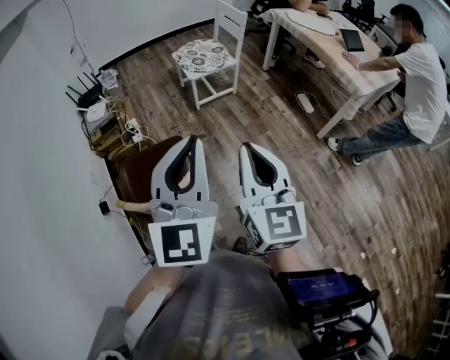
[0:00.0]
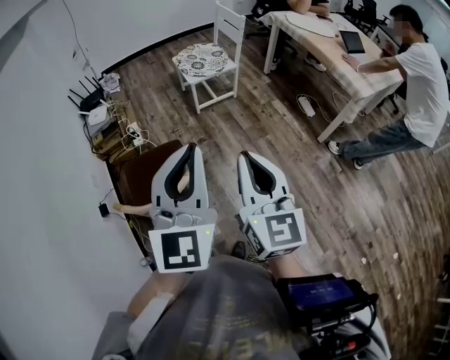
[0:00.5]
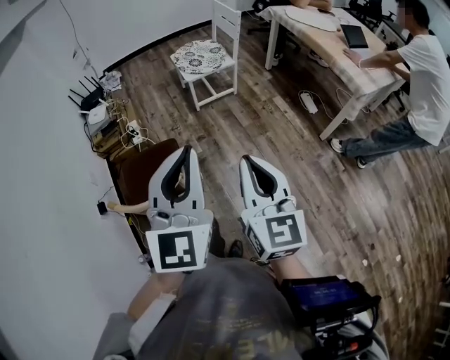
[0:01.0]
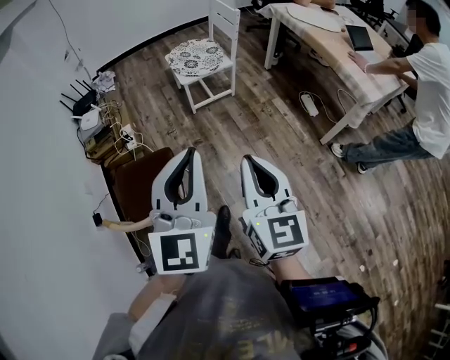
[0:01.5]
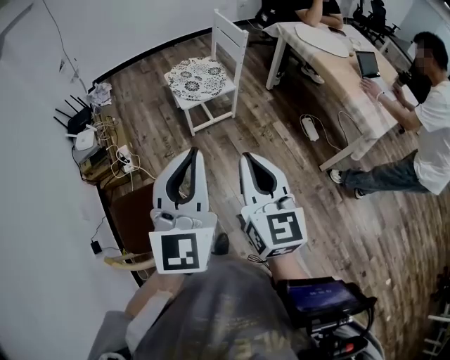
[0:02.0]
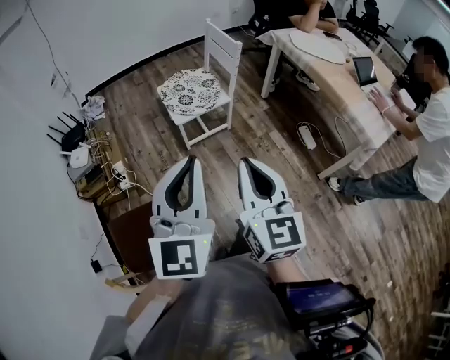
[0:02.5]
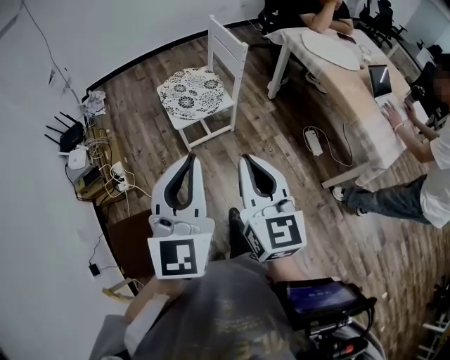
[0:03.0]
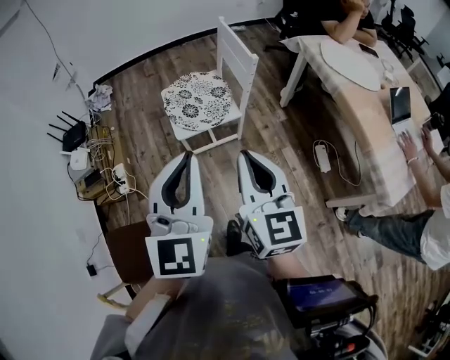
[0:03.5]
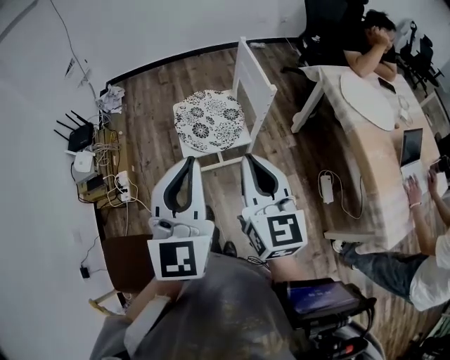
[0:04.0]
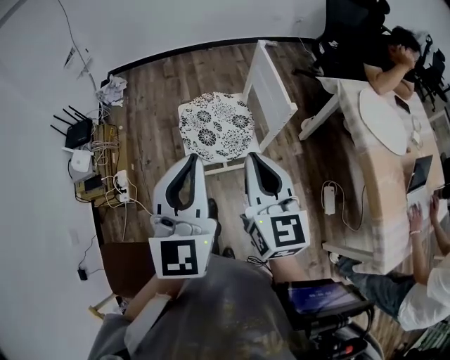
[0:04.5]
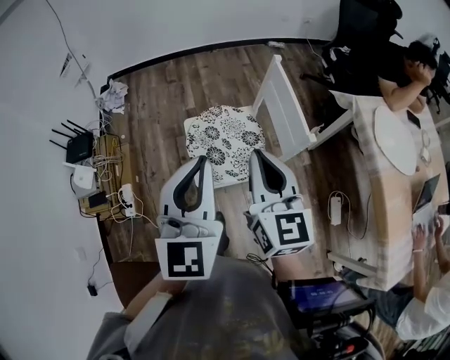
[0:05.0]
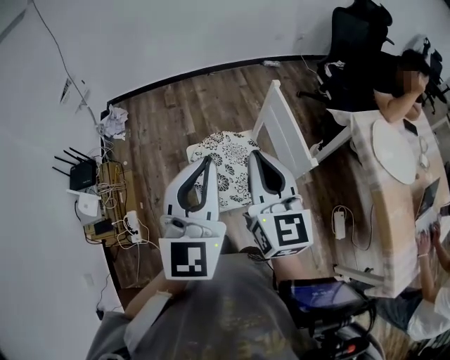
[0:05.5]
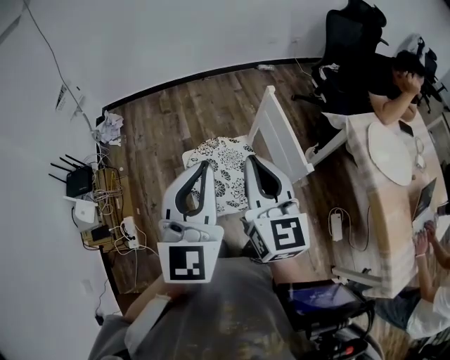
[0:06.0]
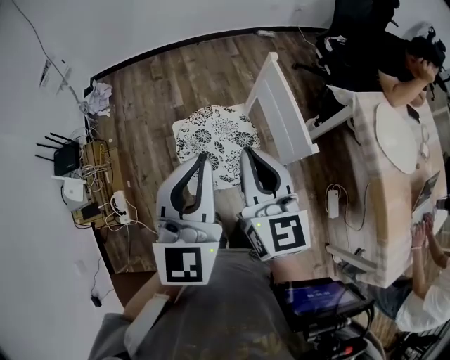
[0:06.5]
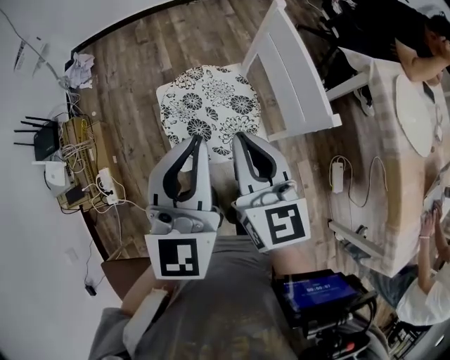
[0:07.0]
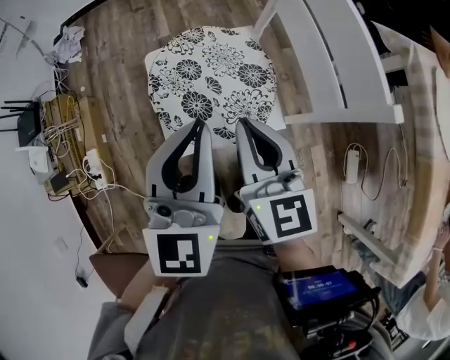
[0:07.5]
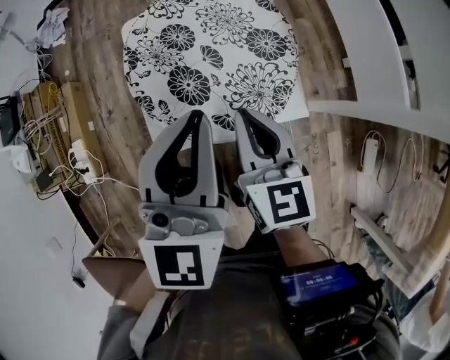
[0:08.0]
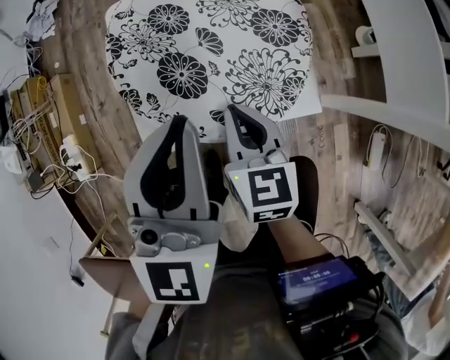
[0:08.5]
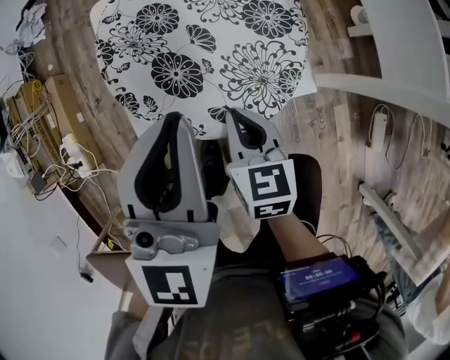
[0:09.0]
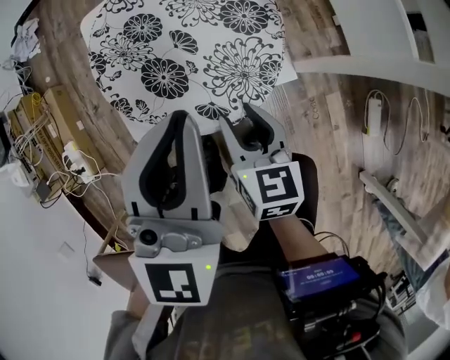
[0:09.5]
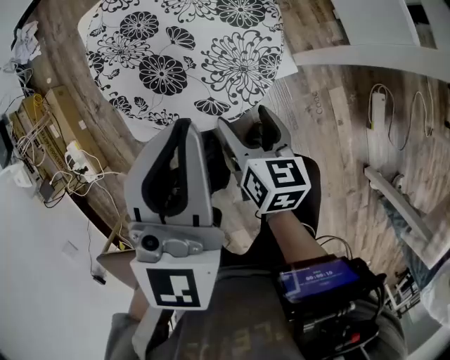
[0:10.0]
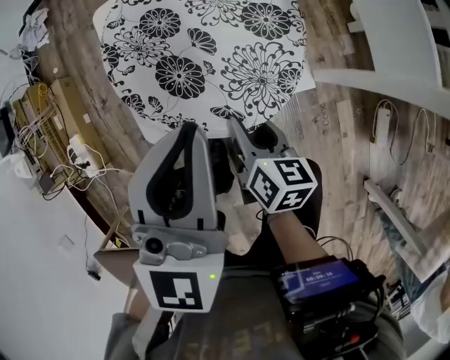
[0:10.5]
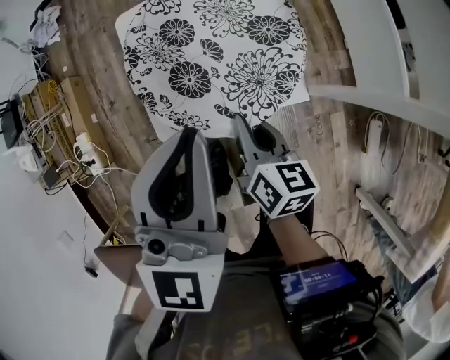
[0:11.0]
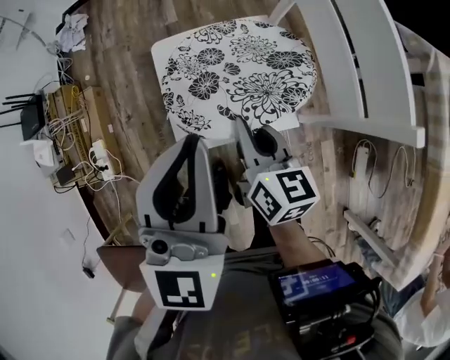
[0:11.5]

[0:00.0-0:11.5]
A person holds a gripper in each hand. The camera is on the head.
0:00.0 to 0:02.0: Both grippers move forward, about 25 cm.
0:02.0 to 0:04.0: Both grippers travel together forward, some 35 cm.
0:04.0 to 0:06.0: The two grippers go some 30 cm forward.
0:06.0 to 0:07.5: Both grippers travel together downward, some 30 cm.
0:07.5 to 0:09.5: The right gripper shifts roughly 25 cm downward, swivels roughly 30 degrees, and opens up; the left gripper is displaced downward by roughly 10 cm.
0:09.5 to 0:11.5: The two grippers go some 15 cm upward. The right gripper closes.

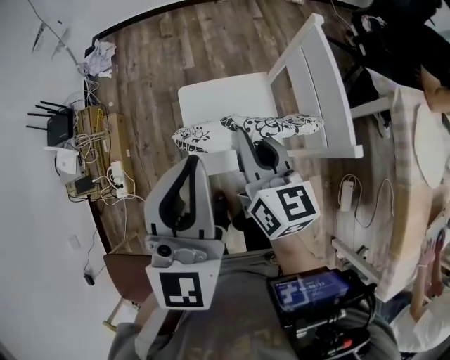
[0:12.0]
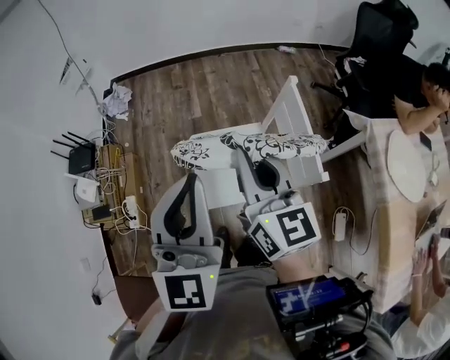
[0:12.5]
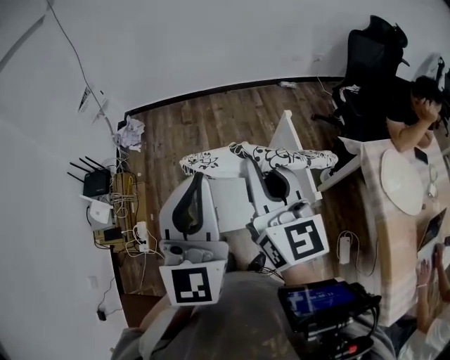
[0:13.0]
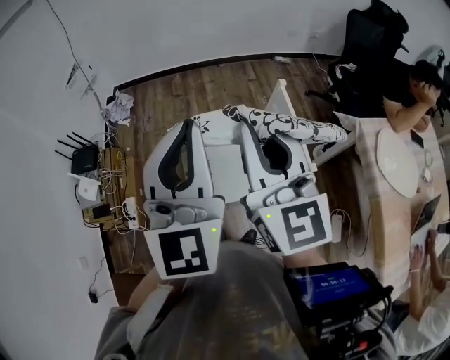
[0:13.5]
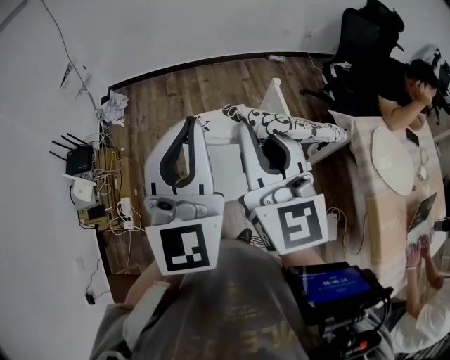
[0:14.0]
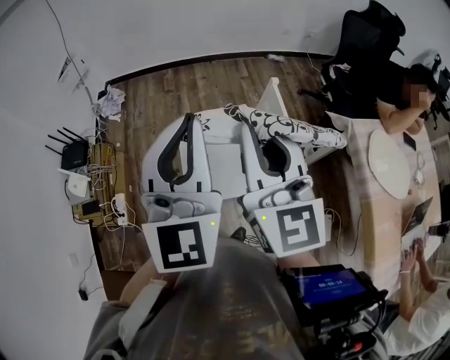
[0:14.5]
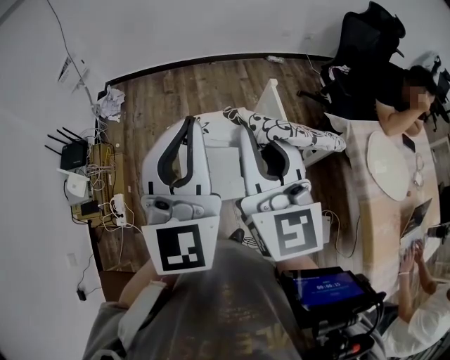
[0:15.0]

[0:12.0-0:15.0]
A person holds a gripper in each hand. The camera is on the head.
0:12.0 to 0:13.5: Both grippers travel together upward, approximately 25 cm. The right gripper turns by roughly 30 degrees.
0:13.5 to 0:15.0: The grippers move only a little.

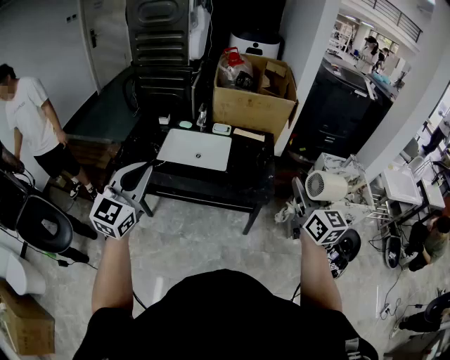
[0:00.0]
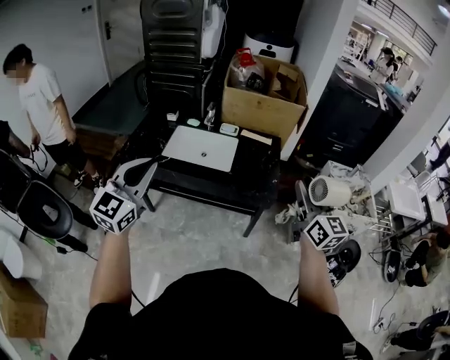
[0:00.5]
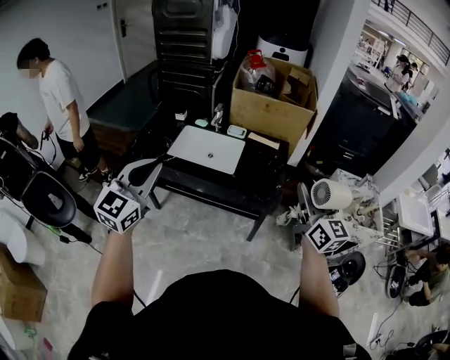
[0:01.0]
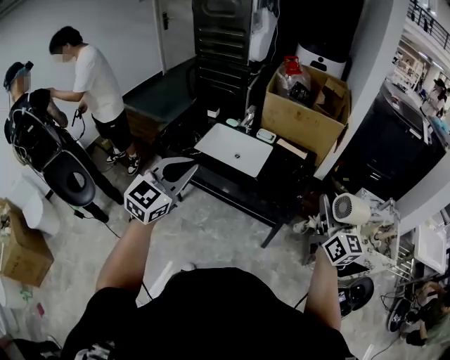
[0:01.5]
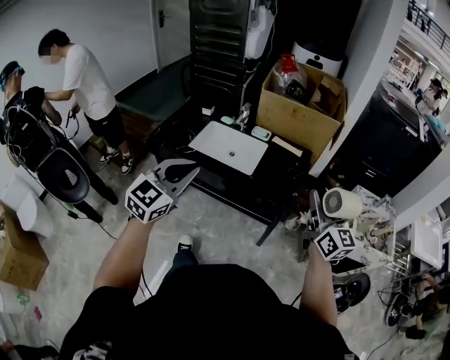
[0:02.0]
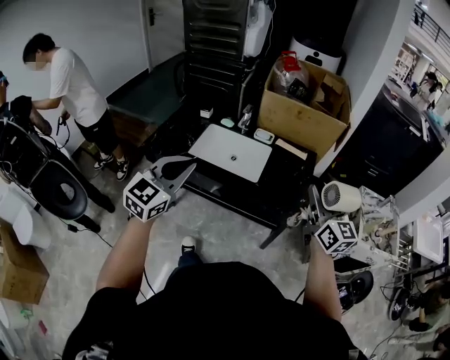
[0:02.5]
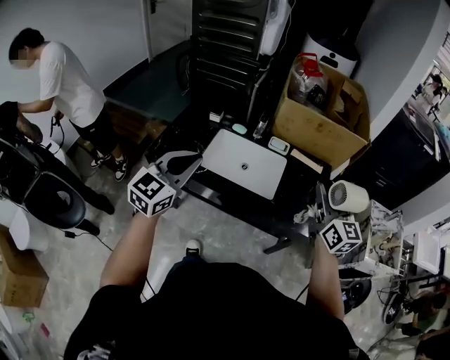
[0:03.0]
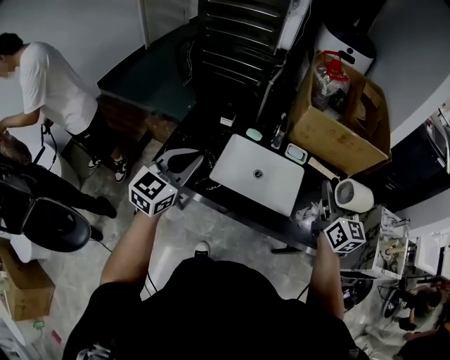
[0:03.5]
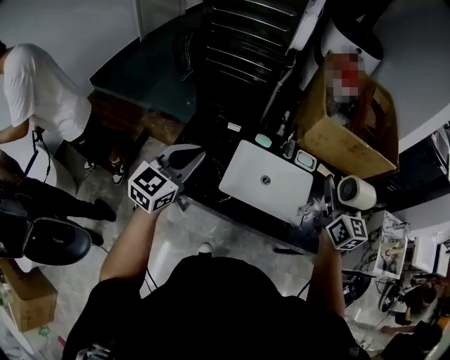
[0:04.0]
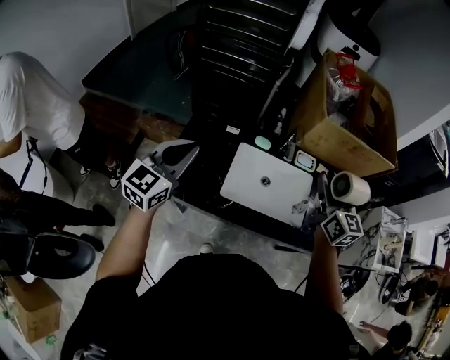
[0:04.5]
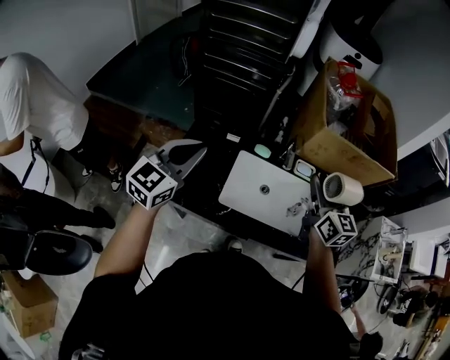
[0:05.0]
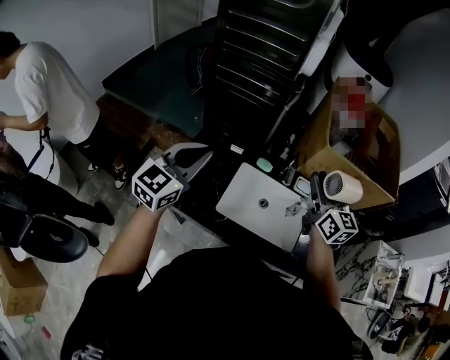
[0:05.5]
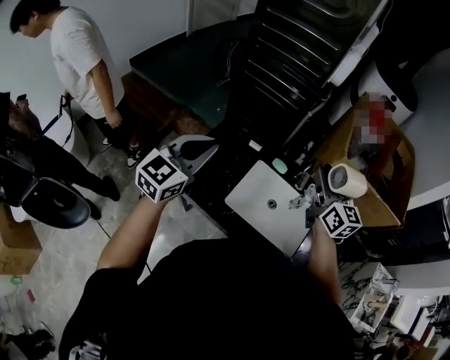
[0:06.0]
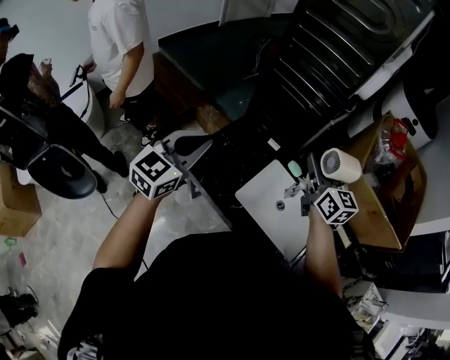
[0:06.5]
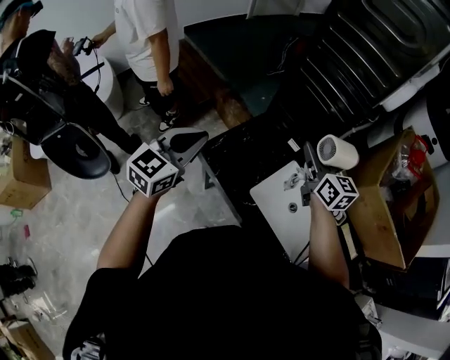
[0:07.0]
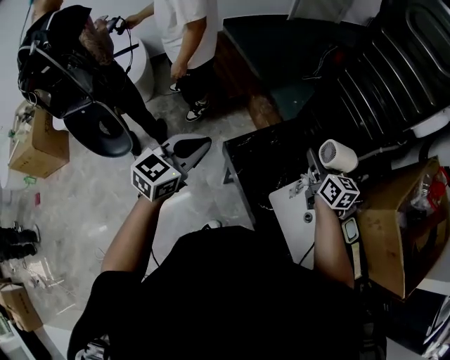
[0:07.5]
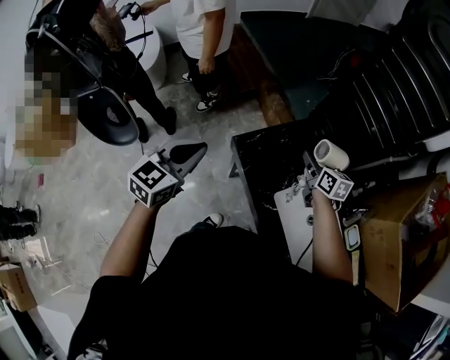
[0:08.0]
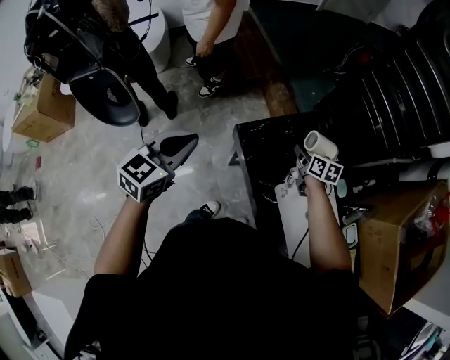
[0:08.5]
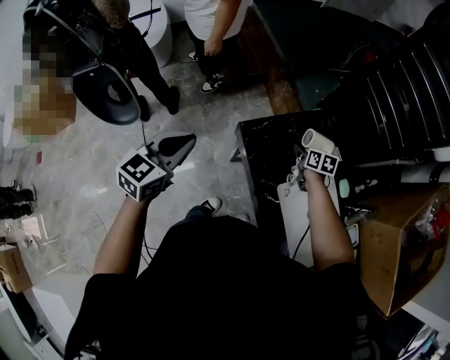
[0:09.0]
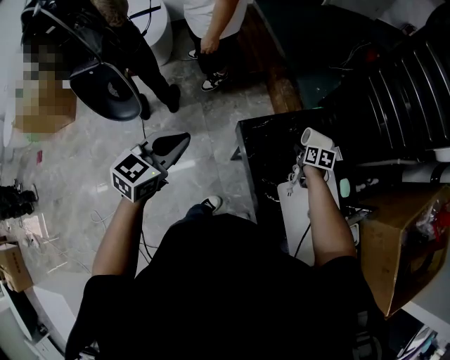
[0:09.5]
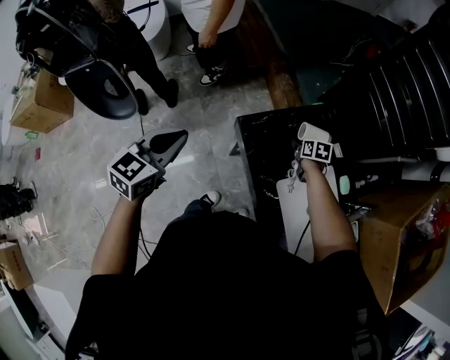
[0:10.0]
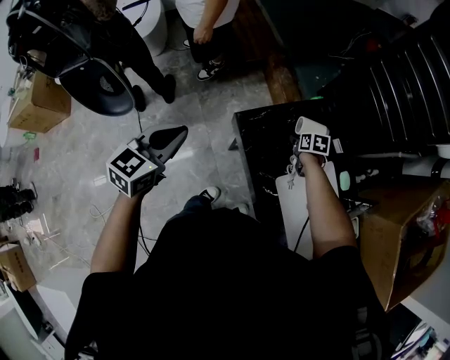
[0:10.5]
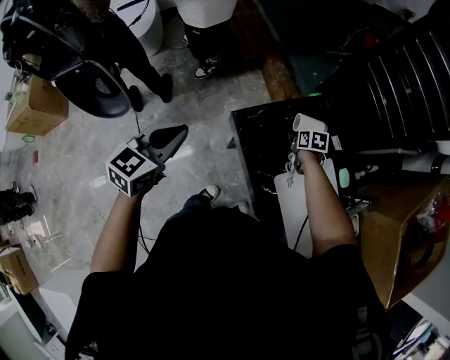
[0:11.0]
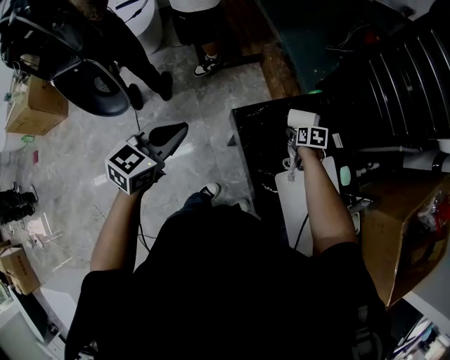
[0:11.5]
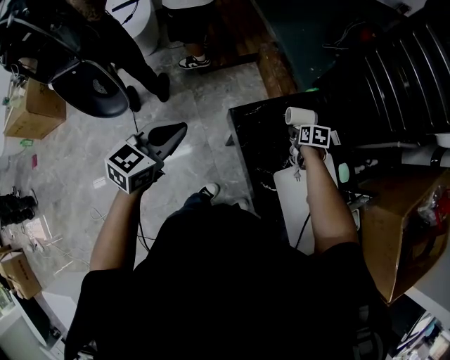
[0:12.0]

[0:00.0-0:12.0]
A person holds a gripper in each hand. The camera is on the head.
0:00.0 to 0:02.0: The right gripper travels forward by some 5 cm. The left gripper heads to the right, covering roughly 10 cm.
0:02.0 to 0:04.0: The two grippers travel together, forward and to the left, approximately 50 cm.
0:04.0 to 0:06.0: The left gripper ends up roughly 5 cm from where it was. Meanwhile the right gripper moves to the left and forward, approximately 15 cm.
0:06.0 to 0:08.0: The right gripper changes place by about 35 cm, and rotates approximately 50 degrees. The left gripper ends up some 25 cm from where it was, and turns by roughly 40 degrees.
0:08.0 to 0:10.0: The right gripper shifts some 20 cm downward, and points its fingers approximately 30 degrees further downward, while the left gripper heads to the left, covering approximately 5 cm.
0:10.0 to 0:12.0: The right gripper opens.
